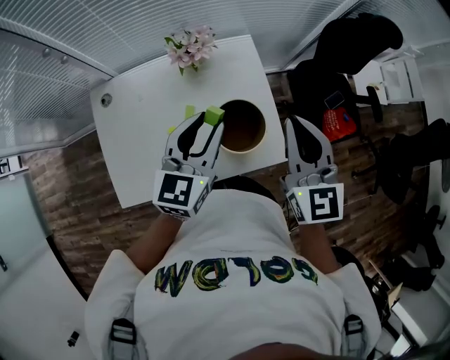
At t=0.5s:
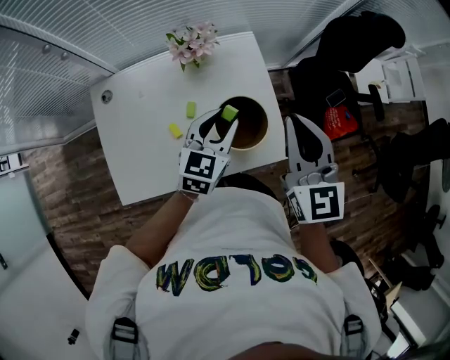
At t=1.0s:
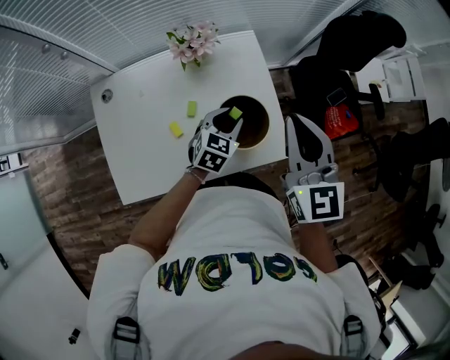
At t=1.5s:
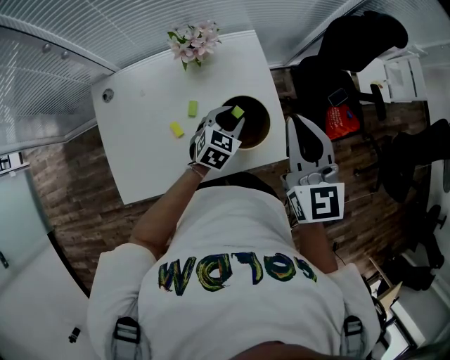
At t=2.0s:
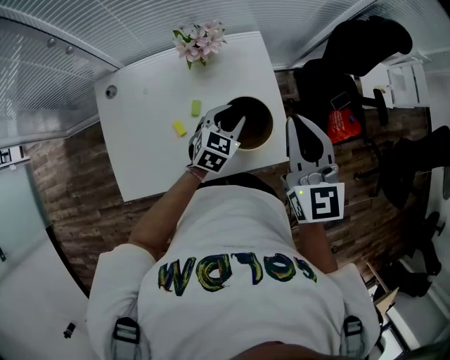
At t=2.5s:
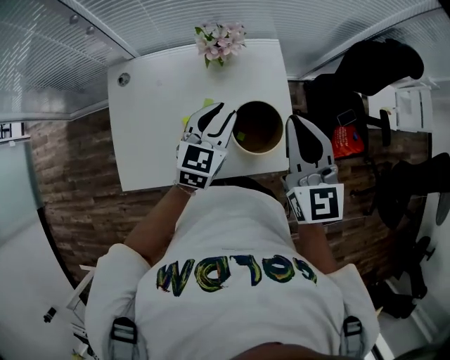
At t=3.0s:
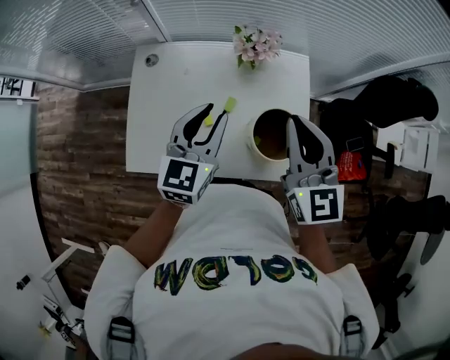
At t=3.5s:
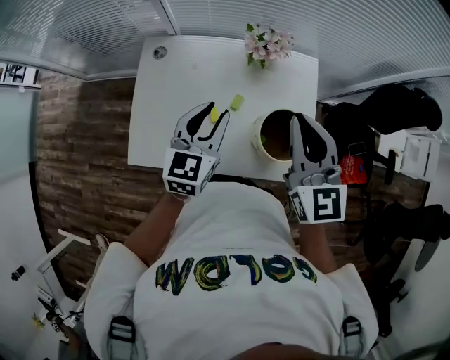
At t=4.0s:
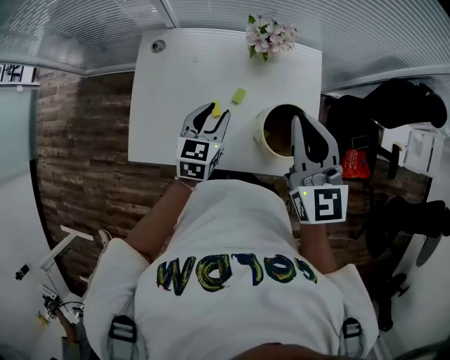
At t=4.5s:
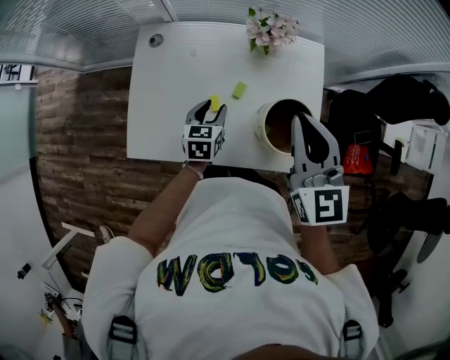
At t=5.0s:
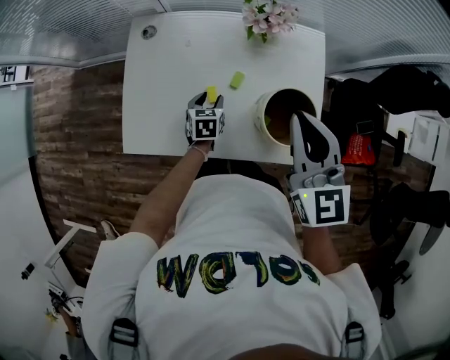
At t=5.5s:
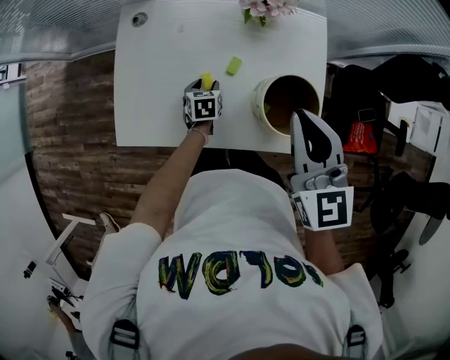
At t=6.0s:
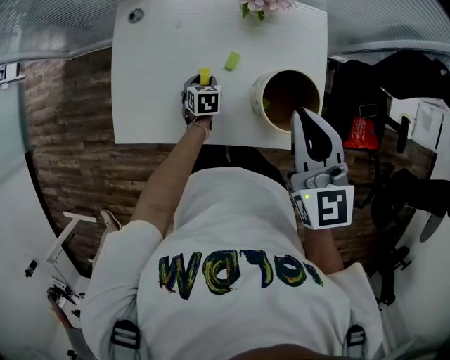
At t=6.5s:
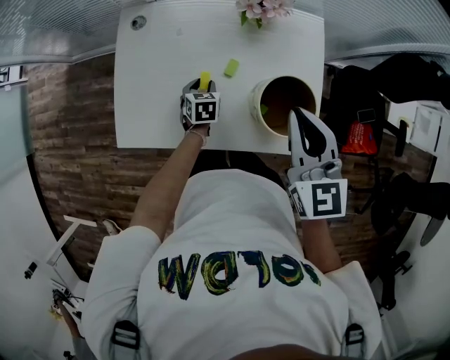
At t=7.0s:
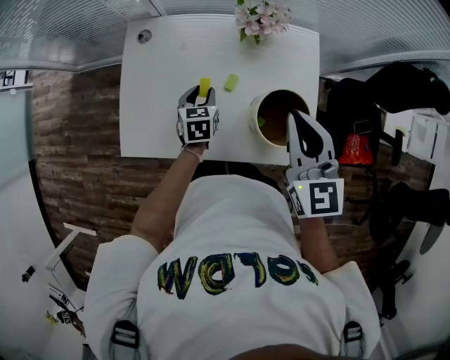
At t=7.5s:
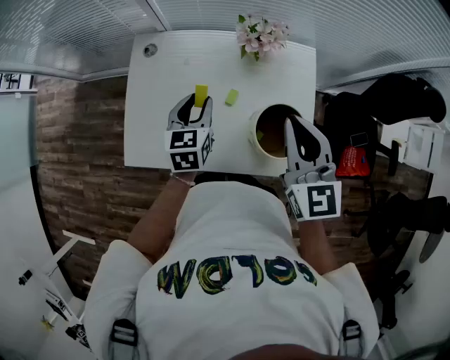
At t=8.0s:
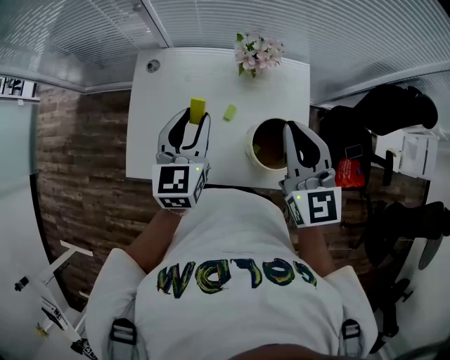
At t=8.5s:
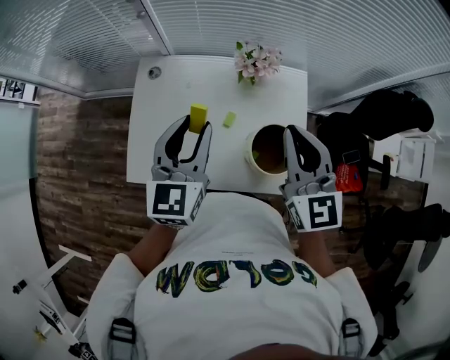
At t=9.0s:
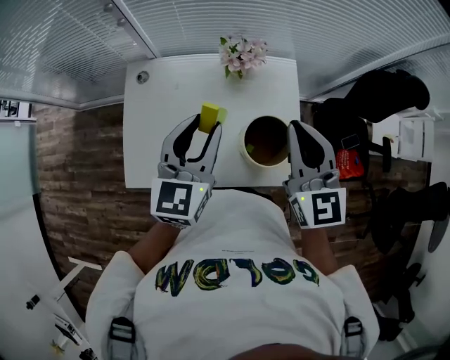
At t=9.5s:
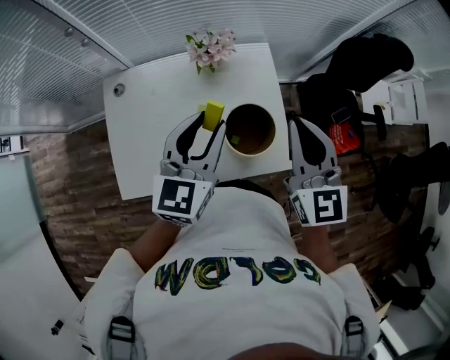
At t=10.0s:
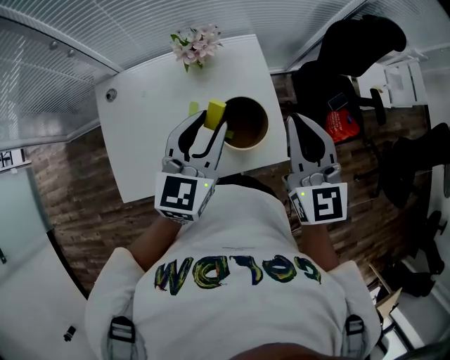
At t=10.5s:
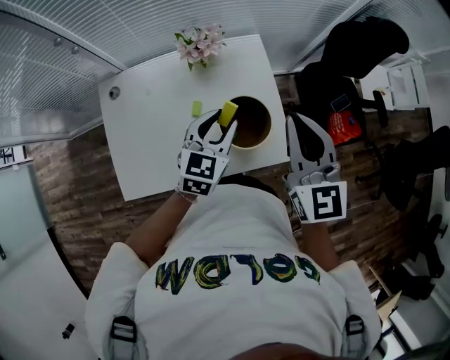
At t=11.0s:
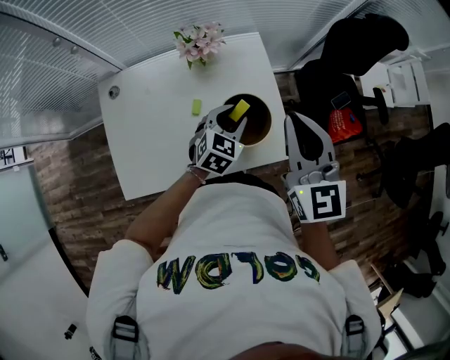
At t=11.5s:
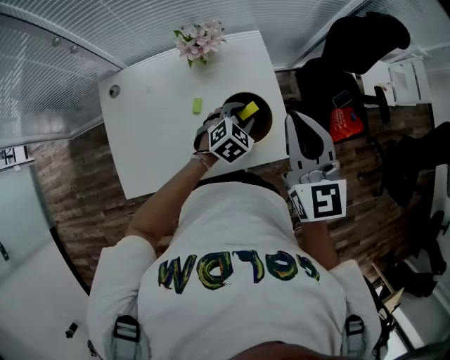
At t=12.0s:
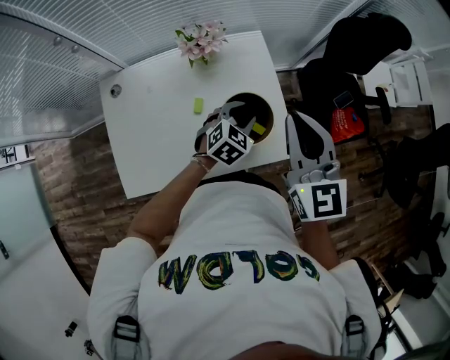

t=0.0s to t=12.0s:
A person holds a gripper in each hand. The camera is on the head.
t=0.0s to t=2.0s: The left gripper goes roughly 15 cm downward, and turns by about 30 degrees.
t=2.0s to t=4.0s: The right gripper travels to the left by roughly 15 cm. The left gripper travels to the left by roughly 20 cm, and rotates some 30 degrees.
t=4.0s to t=6.0s: The left gripper travels downward by roughly 25 cm, and rotates about 30 degrees. The right gripper travels downward by roughly 5 cm.
t=6.0s to t=8.0s: The right gripper shifts approximately 10 cm upward, while the left gripper travels upward by about 40 cm, and angles its fingers upward, by roughly 40 degrees.
t=8.0s to t=10.0s: Both grippers move to the right, some 15 cm. The left gripper swivels approximately 30 degrees.
t=10.0s to t=12.0s: The left gripper shifts roughly 20 cm downward and to the right, and turns by about 40 degrees.

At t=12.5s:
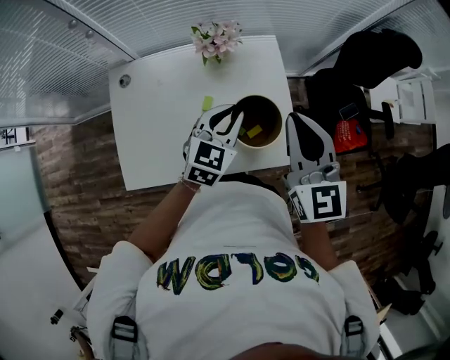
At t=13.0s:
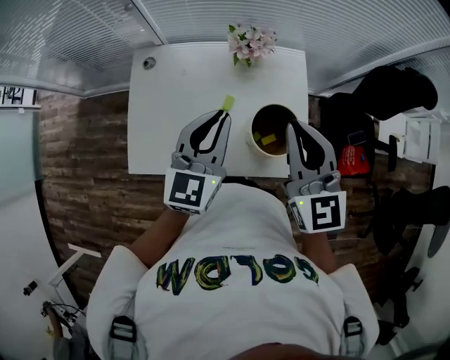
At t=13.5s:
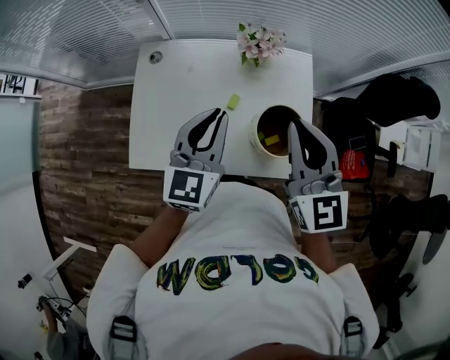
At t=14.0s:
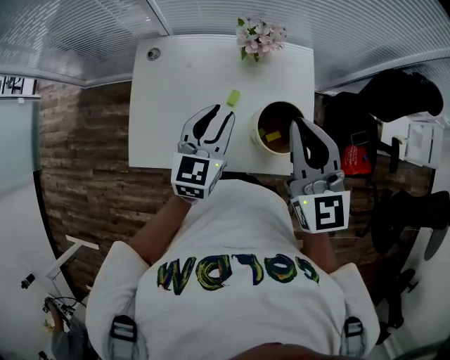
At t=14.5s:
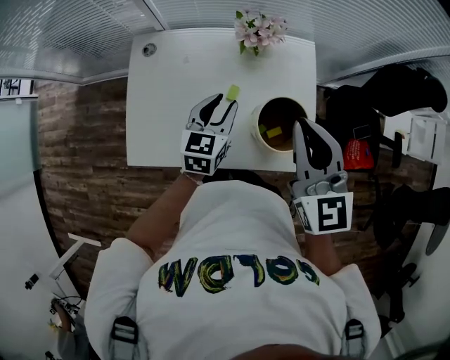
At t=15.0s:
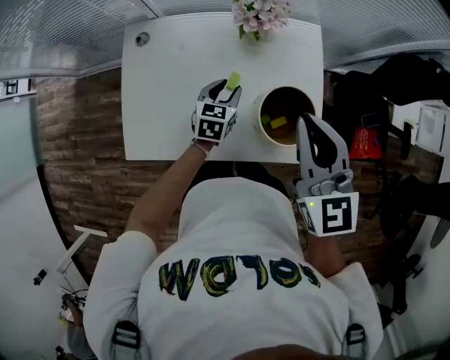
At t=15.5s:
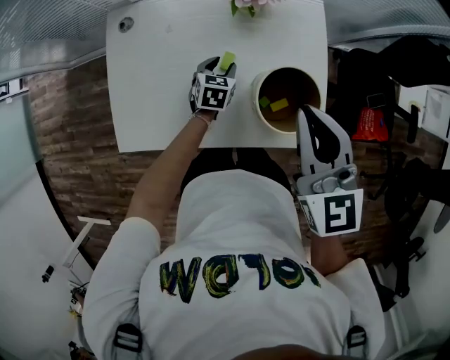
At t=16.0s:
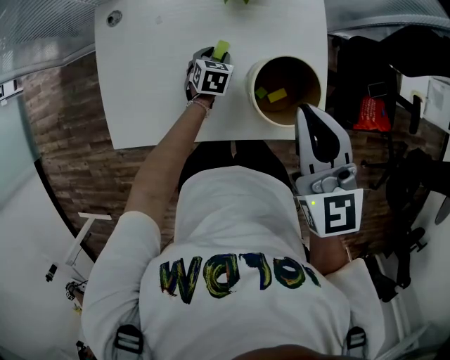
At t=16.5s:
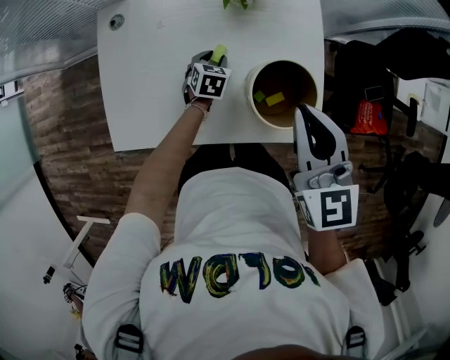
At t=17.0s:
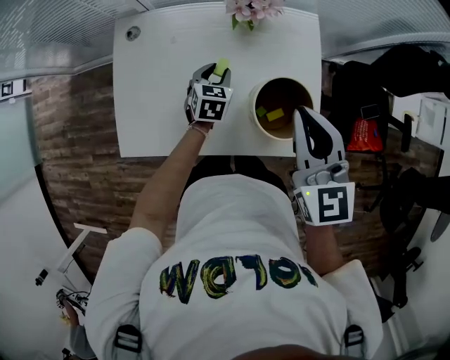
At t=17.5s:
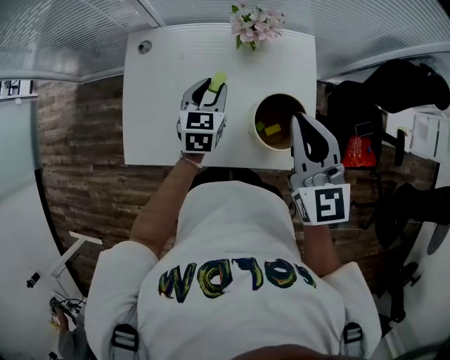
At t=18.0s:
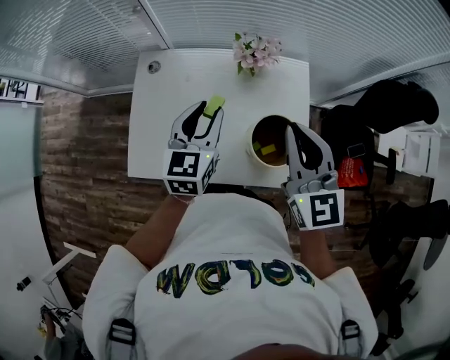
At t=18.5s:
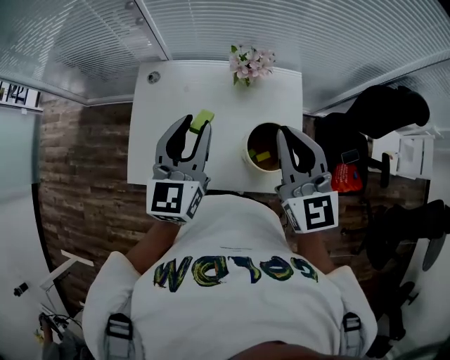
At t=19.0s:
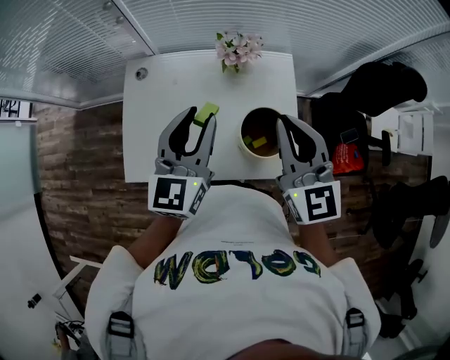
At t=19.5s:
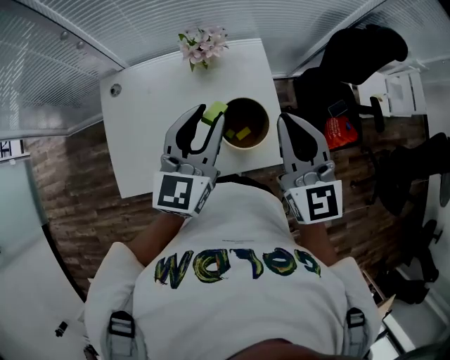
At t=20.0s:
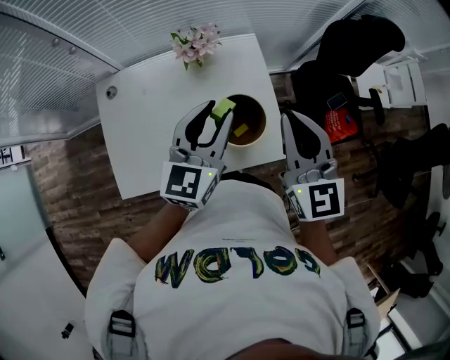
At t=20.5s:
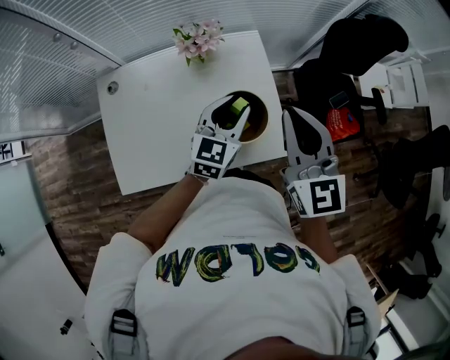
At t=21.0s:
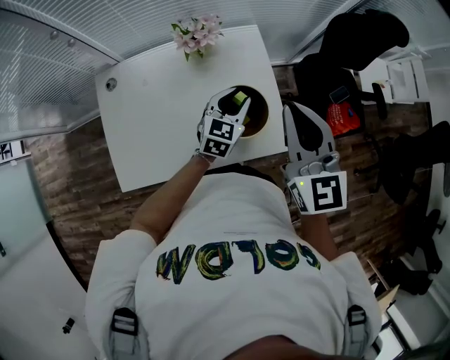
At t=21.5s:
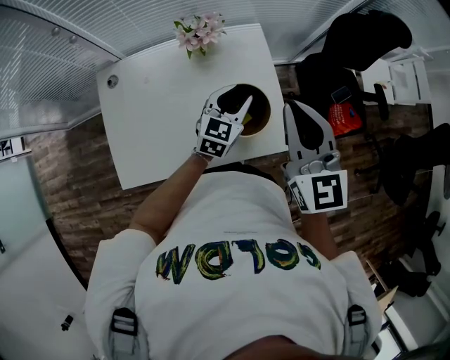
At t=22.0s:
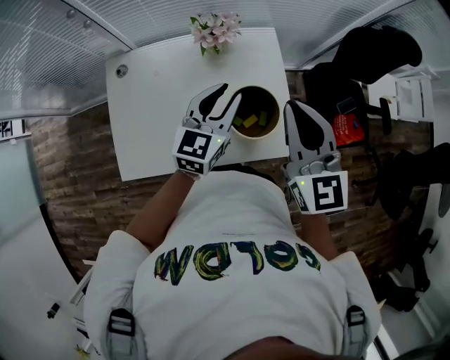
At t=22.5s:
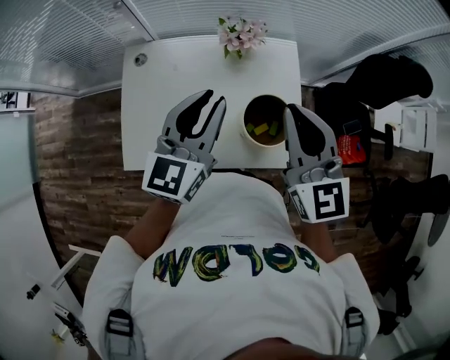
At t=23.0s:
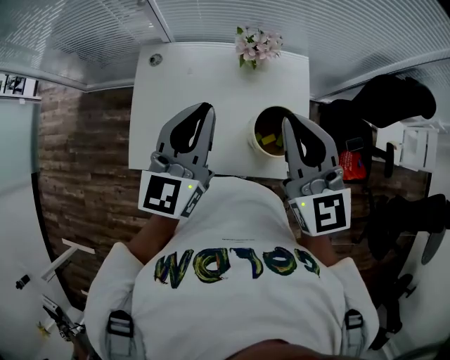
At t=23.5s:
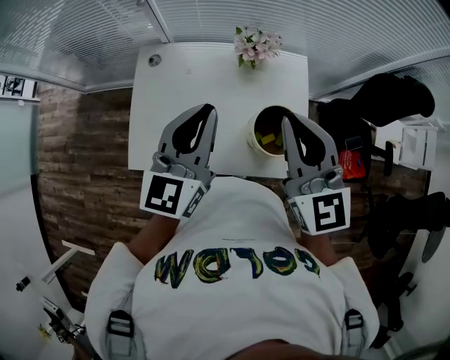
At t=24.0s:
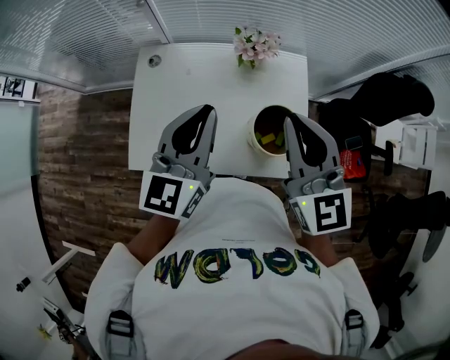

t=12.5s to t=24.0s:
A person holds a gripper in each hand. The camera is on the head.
t=12.5s to t=14.5s: The left gripper goes about 15 cm to the left and downward, and rotates approximately 20 degrees. The right gripper goes some 10 cm to the left.
t=14.5s to t=16.5s: The left gripper heads downward, covering roughly 25 cm, and changes its angle by approximately 30 degrees. Meanwhile the right gripper heads downward, covering some 10 cm.
t=16.5s to t=18.5s: The left gripper moves upward, some 40 cm, and angles its fingers upward, by some 50 degrees. Meanwhile the right gripper goes approximately 15 cm upward.
t=18.5s to t=20.0s: Both grippers move to the right, roughly 15 cm. The left gripper changes its angle by about 30 degrees.
t=20.0s to t=22.0s: The left gripper travels downward by some 5 cm.
t=22.0s to t=24.0s: The right gripper shifts approximately 10 cm to the left. Meanwhile the left gripper travels to the left and upward by about 20 cm, rotates approximately 20 degrees, and closes.

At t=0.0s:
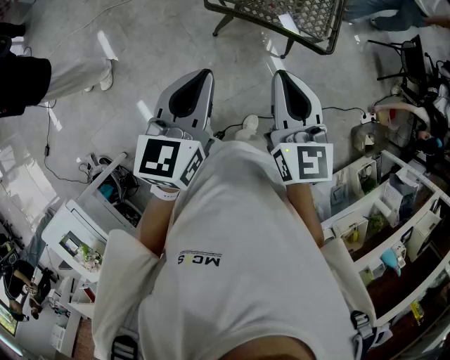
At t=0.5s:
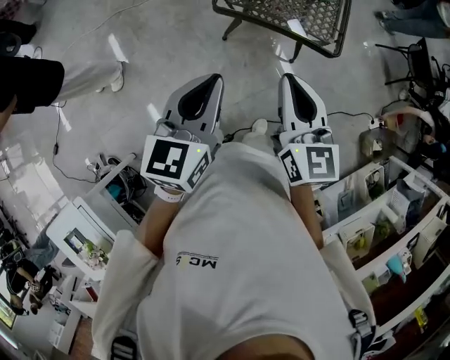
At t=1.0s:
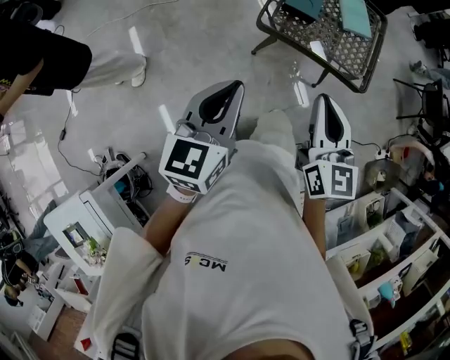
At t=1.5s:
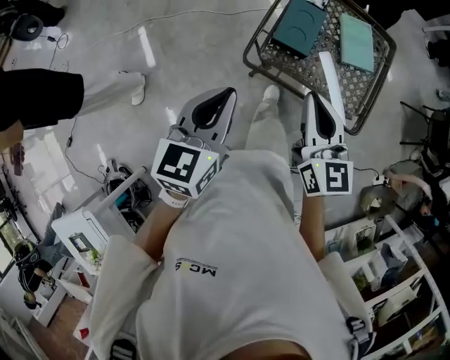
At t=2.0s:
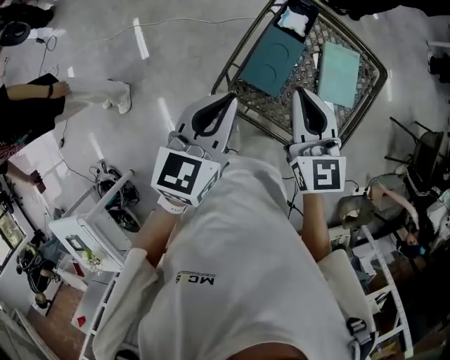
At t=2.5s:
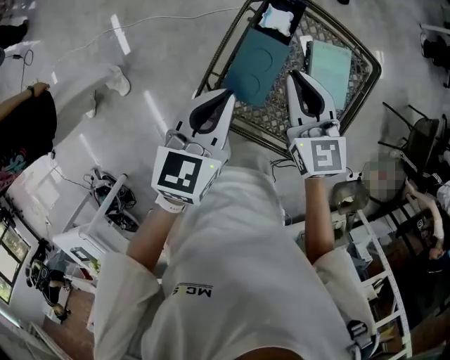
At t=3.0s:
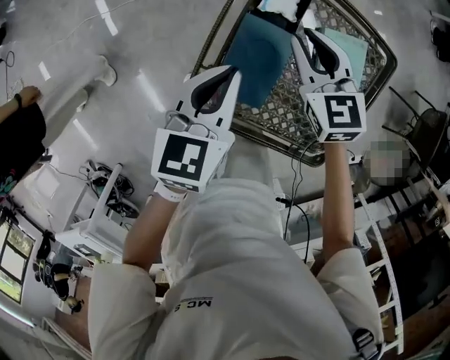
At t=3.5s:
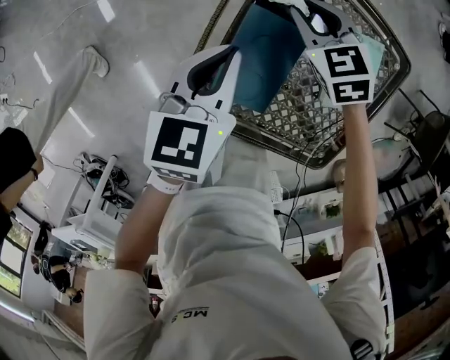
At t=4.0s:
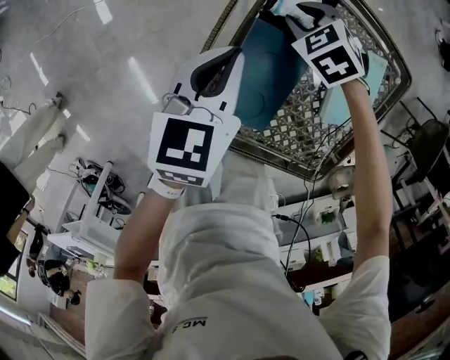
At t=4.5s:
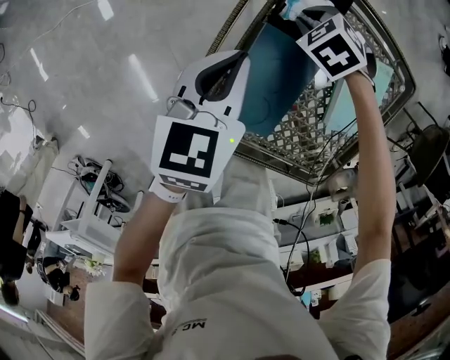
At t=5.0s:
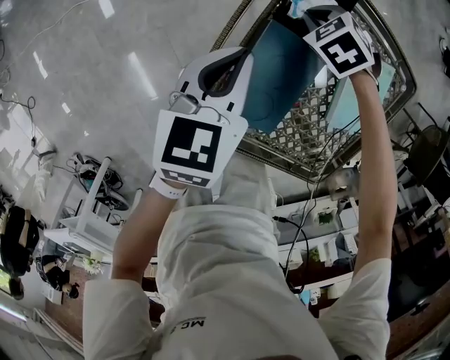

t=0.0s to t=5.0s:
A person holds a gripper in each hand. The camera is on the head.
t=0.0s to t=2.5s: Both grippers are carried forward, approximately 50 cm.
t=2.5s to t=5.0s: The right gripper shifts roughly 35 cm downward, angles its fingers downward, by roughly 50 degrees, and opens, then closes once more; the left gripper shifts some 20 cm downward.
